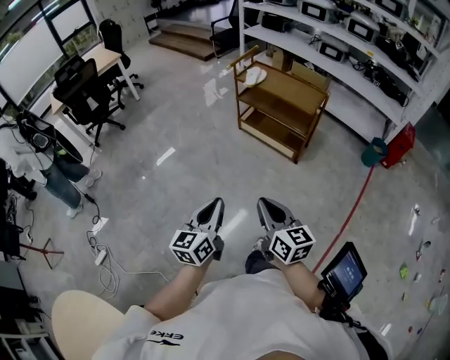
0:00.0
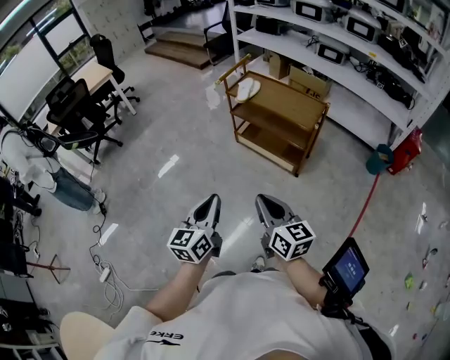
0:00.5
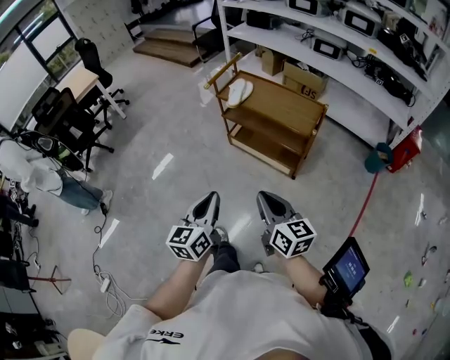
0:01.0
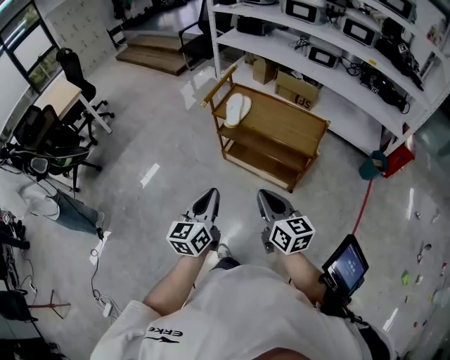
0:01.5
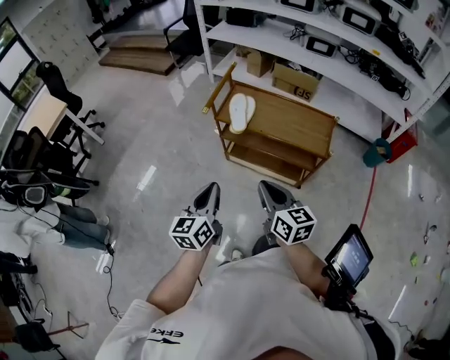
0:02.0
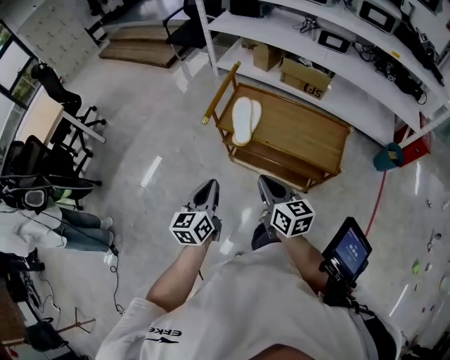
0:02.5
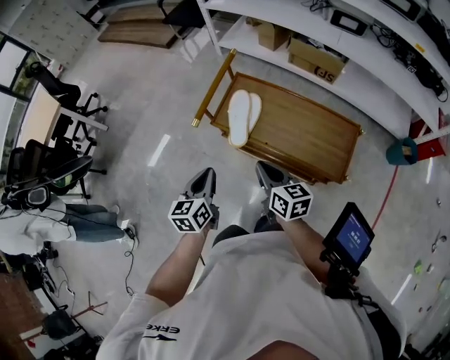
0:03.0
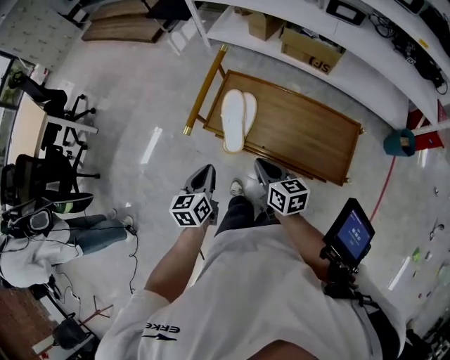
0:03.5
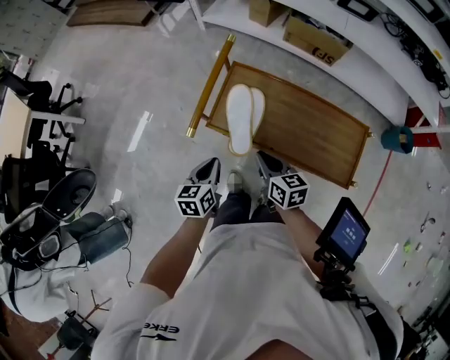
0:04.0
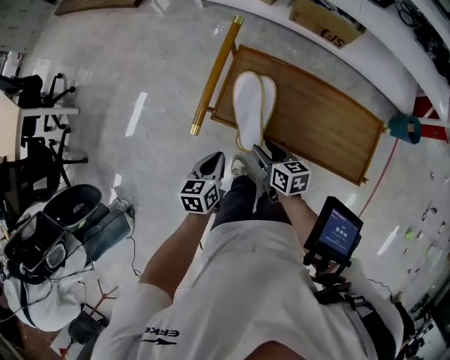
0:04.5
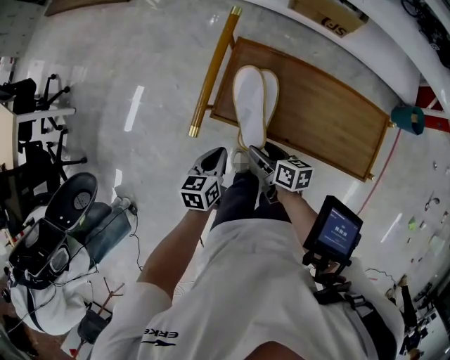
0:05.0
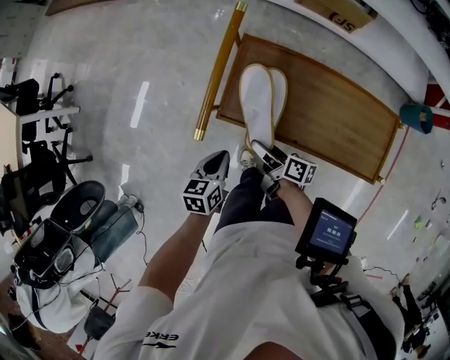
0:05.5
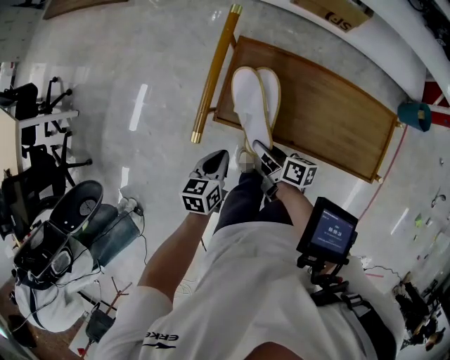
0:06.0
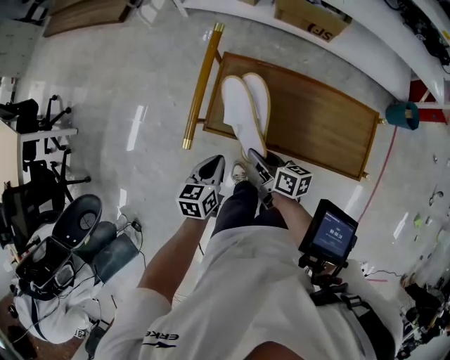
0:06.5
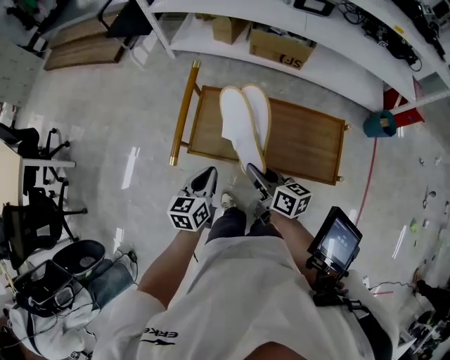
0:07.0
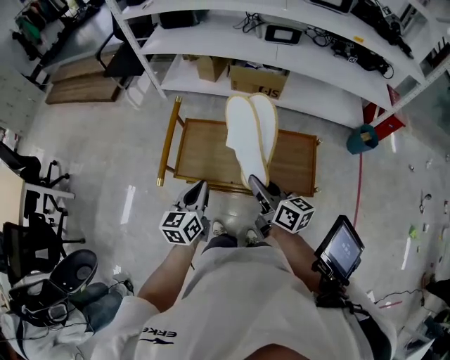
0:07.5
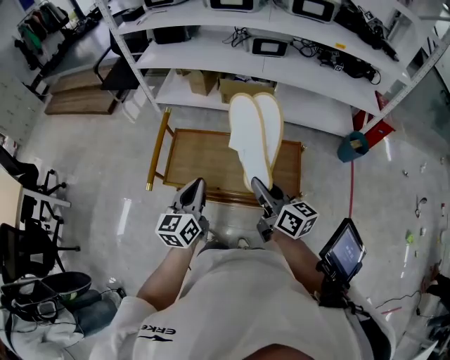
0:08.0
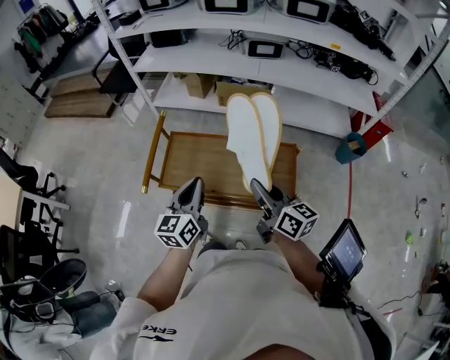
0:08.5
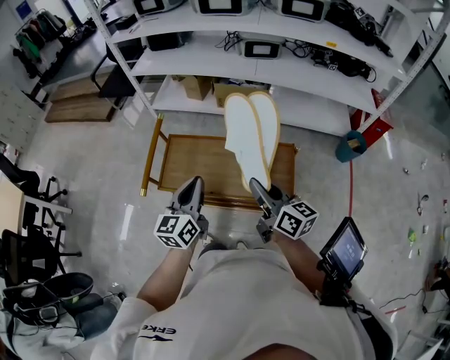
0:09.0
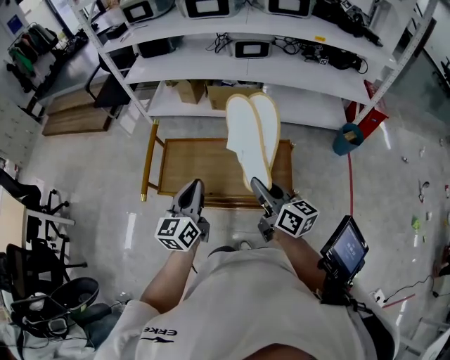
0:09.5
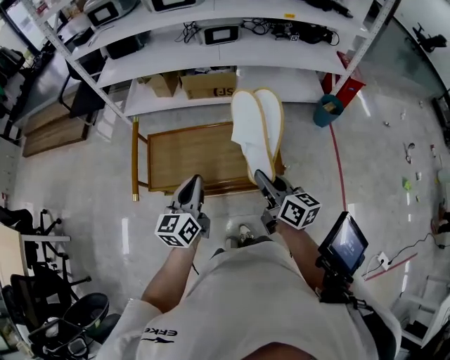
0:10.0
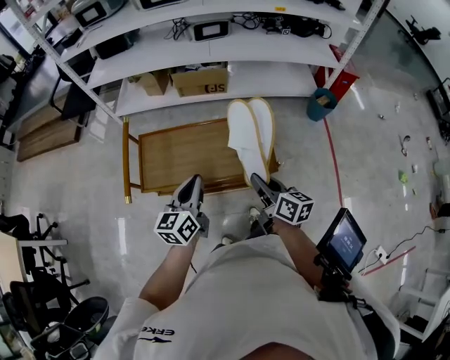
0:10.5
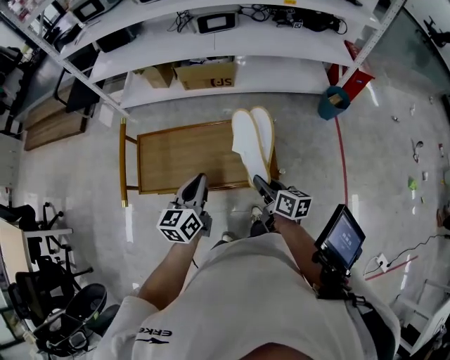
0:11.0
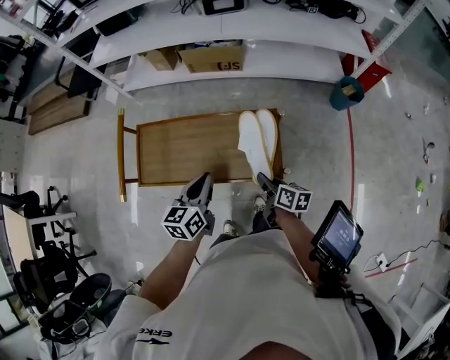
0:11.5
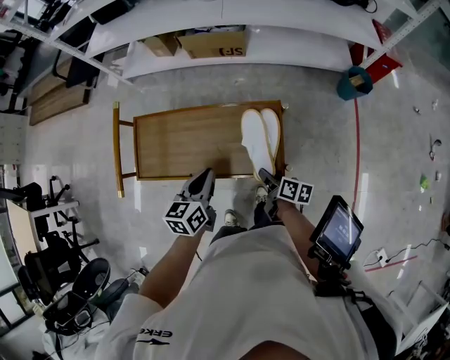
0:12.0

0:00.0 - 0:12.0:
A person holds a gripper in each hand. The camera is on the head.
0:00.0 - 0:02.0: The two grippers travel together, forward, about 60 cm.
0:02.0 - 0:04.0: The grippers both shift forward and downward by approximately 40 cm. The left gripper swivels some 30 degrees.
0:04.0 - 0:06.0: The right gripper travels downward by about 15 cm, swivels some 40 degrees, and opens, then closes again; the left gripper travels downward by approximately 10 cm.
0:06.0 - 0:08.0: Both grippers travel together upward and to the right, roughly 35 cm. The right gripper swivels approximately 40 degrees. Meanwhile the left gripper angles its fingers upward, by about 30 degrees.
0:08.0 - 0:10.0: The right gripper travels to the right and backward by about 10 cm.
0:10.0 - 0:12.0: The left gripper is displaced downward, to the right and forward by about 20 cm, and turns by some 20 degrees; the right gripper travels downward by some 25 cm, and turns by approximately 40 degrees.

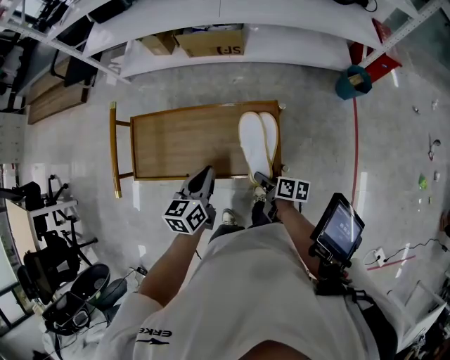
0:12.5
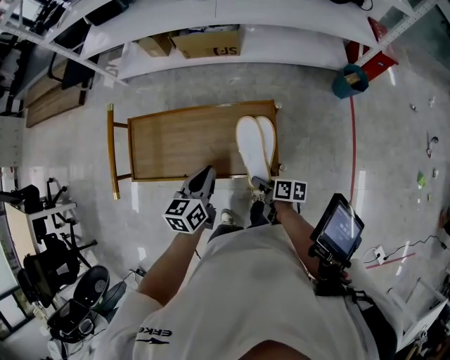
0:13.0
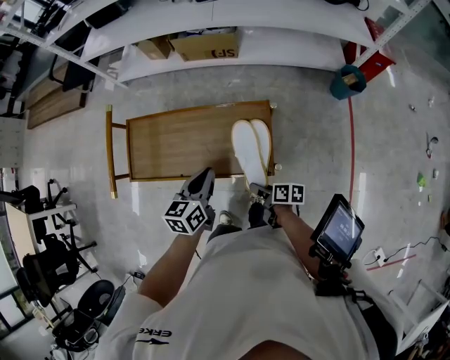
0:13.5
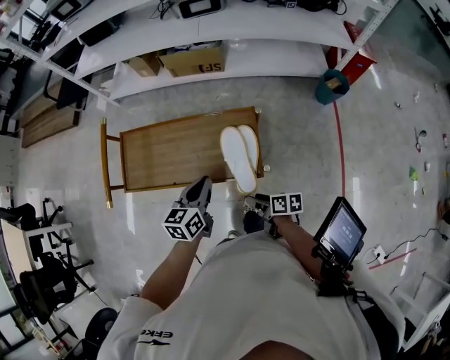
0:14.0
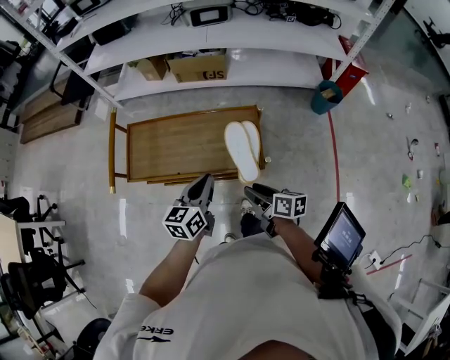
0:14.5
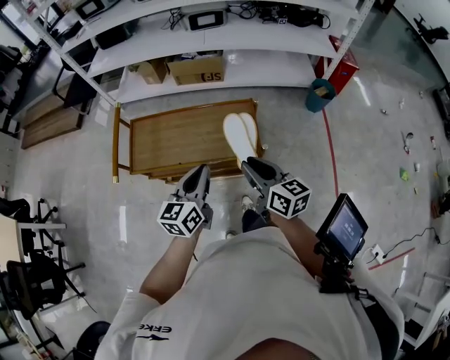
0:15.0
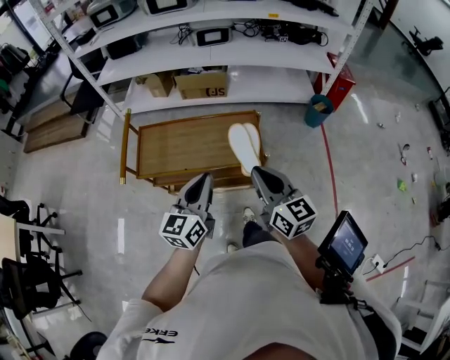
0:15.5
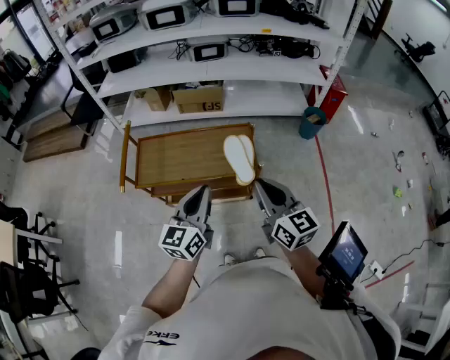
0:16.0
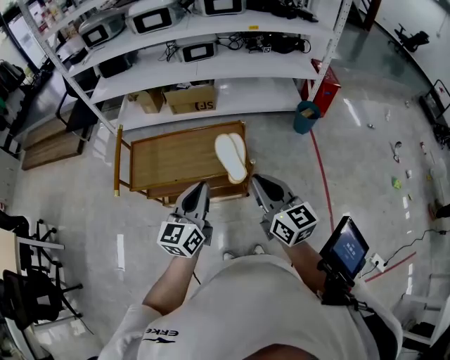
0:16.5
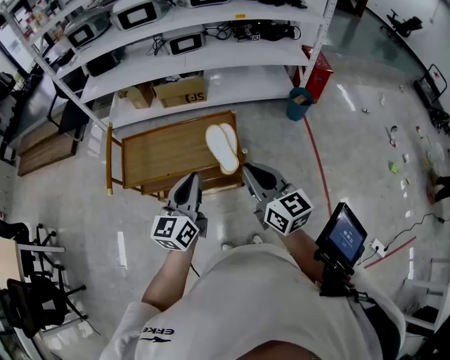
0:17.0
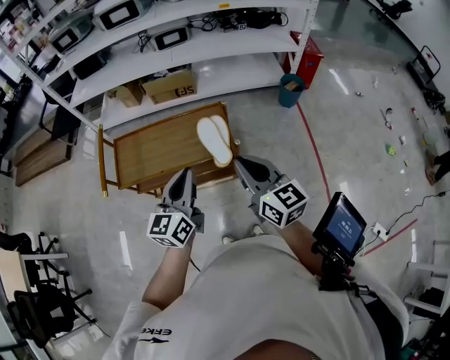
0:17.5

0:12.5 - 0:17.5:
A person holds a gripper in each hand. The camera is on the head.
0:12.5 - 0:15.0: The right gripper heads upward and backward, covering approximately 30 cm, rotates around the line of its fingers by approximately 40 degrees, counterclockwise from behind, and opens and closes again. The left gripper shifts some 20 cm backward and upward.
0:15.0 - 0:17.5: The grippers both shift upward and backward by roughly 10 cm.

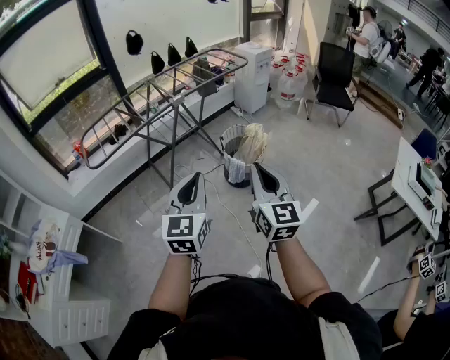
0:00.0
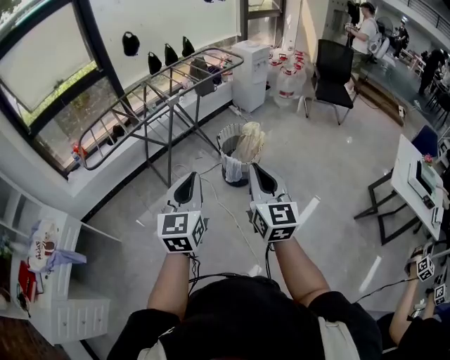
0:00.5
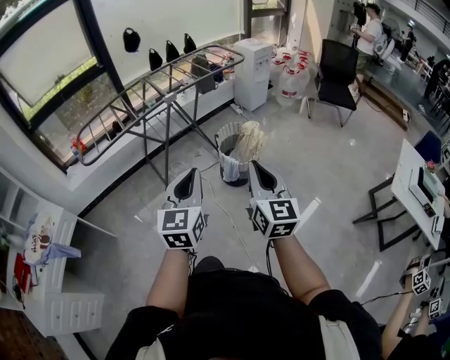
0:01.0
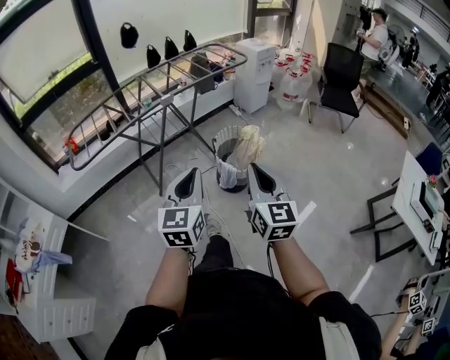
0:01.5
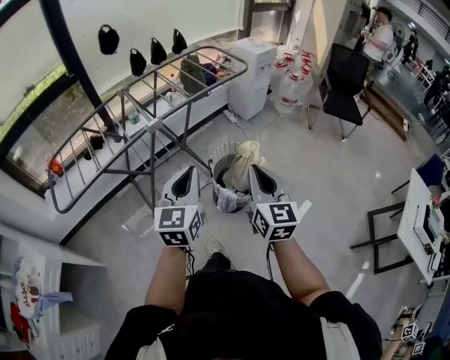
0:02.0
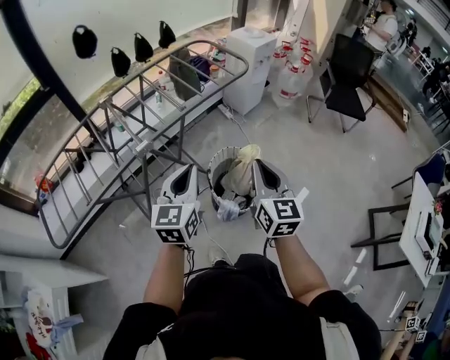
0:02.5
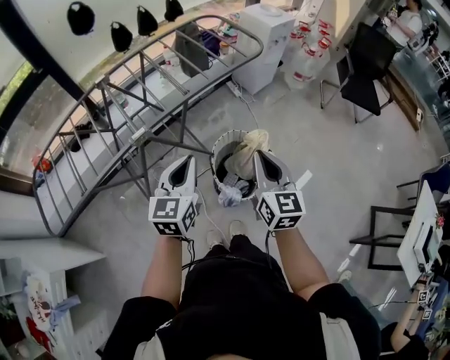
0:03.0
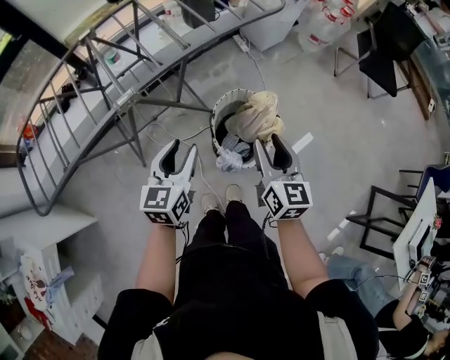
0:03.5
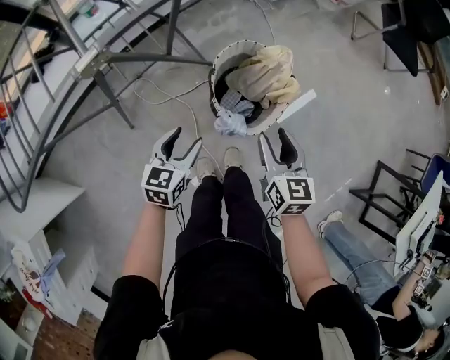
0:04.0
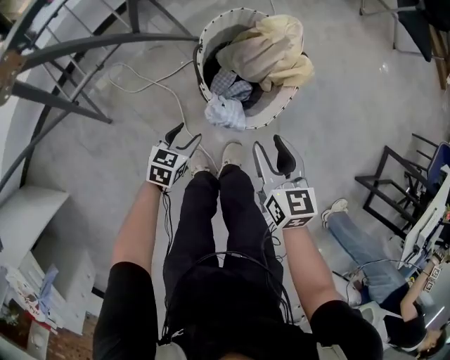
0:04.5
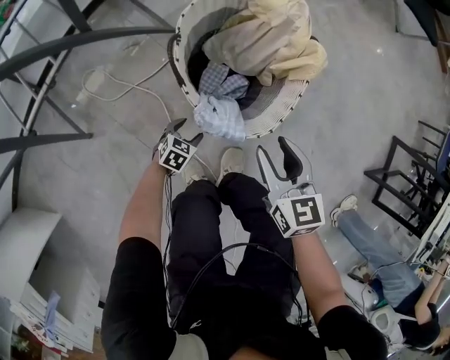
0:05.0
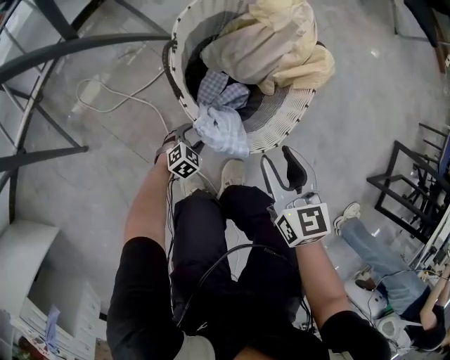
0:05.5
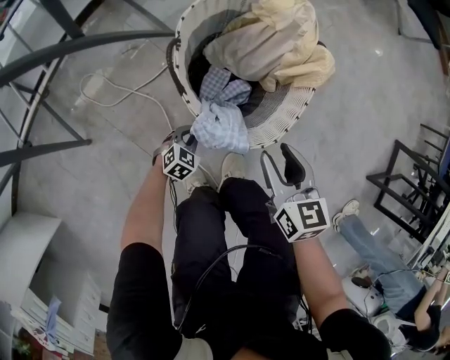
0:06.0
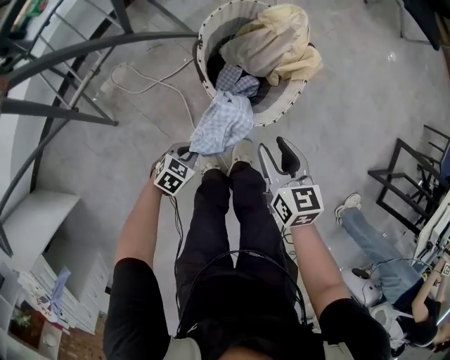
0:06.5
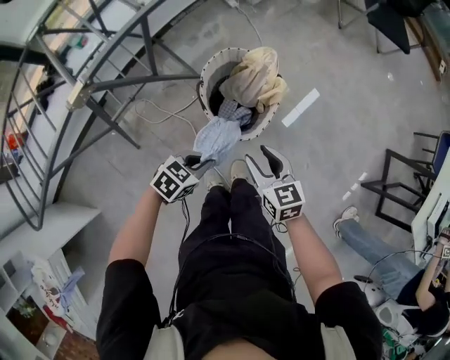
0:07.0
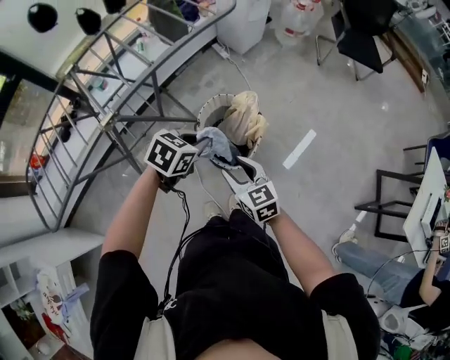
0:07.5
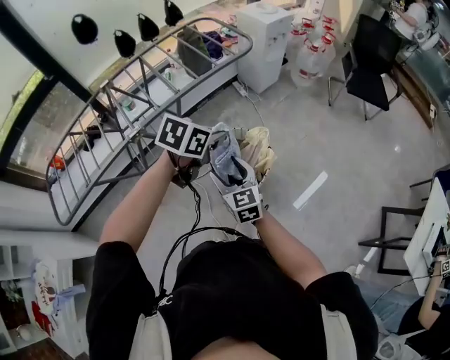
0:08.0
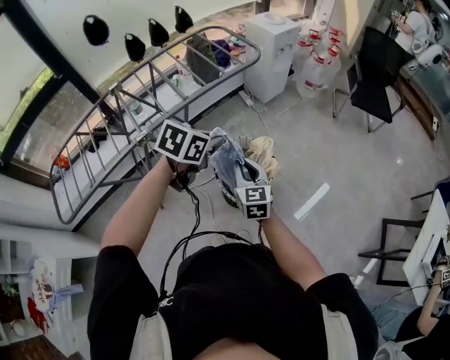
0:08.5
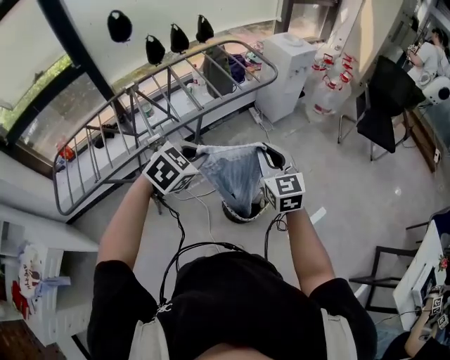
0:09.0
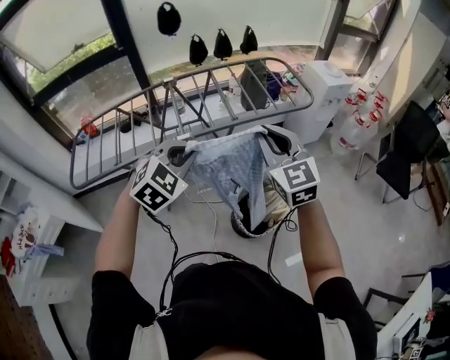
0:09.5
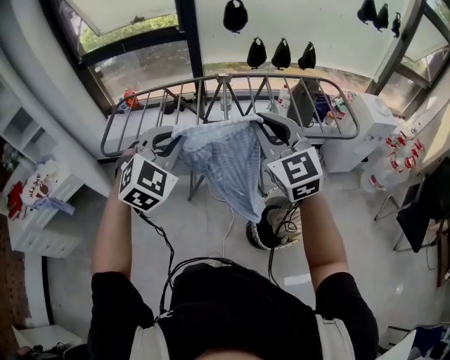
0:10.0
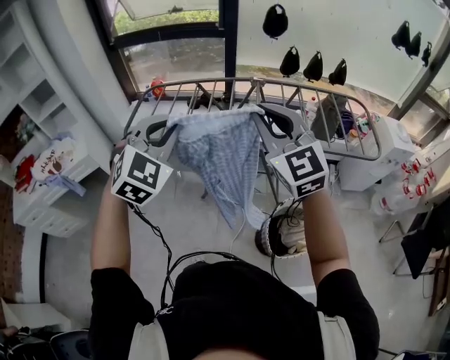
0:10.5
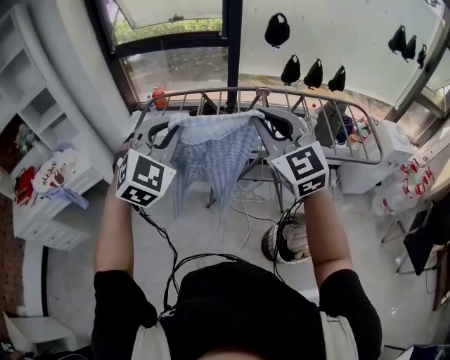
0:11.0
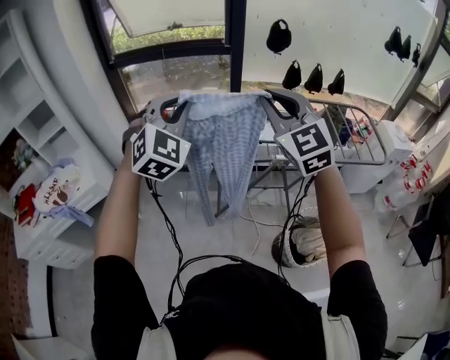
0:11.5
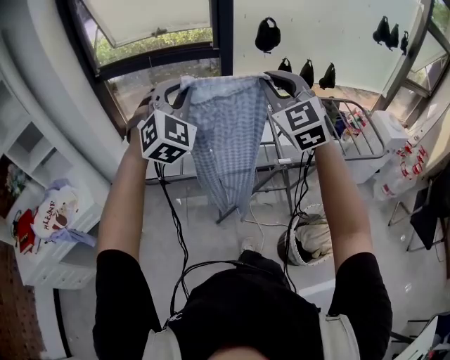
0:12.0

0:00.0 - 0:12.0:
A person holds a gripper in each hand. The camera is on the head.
0:00.0 - 0:02.0: The two grippers go about 35 cm forward.
0:02.0 - 0:04.0: The two grippers go some 40 cm downward and forward. The left gripper changes its angle by some 30 degrees, and opens, while the right gripper changes its angle by roughly 30 degrees, and opens its fingers.
0:04.0 - 0:06.0: The right gripper heads downward, covering about 30 cm; the left gripper heads downward, covering approximately 50 cm, swivels about 40 degrees, and closes its fingers.
0:06.0 - 0:08.0: The left gripper heads upward, covering roughly 90 cm, and turns by roughly 20 degrees; the right gripper moves upward, approximately 50 cm, and turns by about 30 degrees.
0:08.0 - 0:10.0: The left gripper ends up some 40 cm from where it was, and swivels about 70 degrees. Meanwhile the right gripper moves upward, roughly 30 cm, swivels about 50 degrees, and closes up.
0:10.0 - 0:12.0: The grippers both shift to the left, forward and upward by some 30 cm. The left gripper rotates about 20 degrees.
